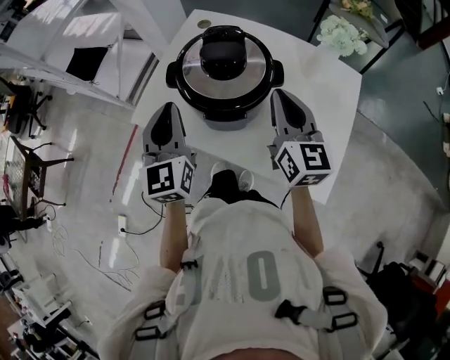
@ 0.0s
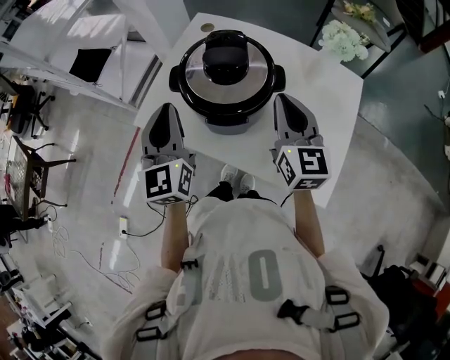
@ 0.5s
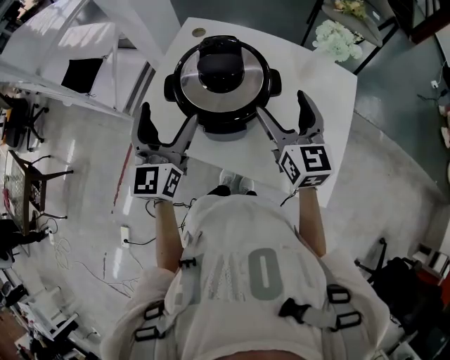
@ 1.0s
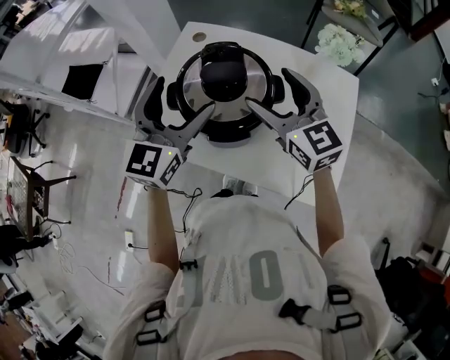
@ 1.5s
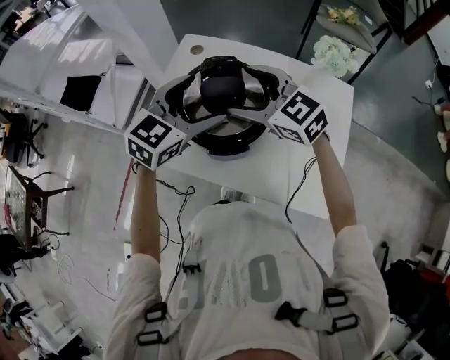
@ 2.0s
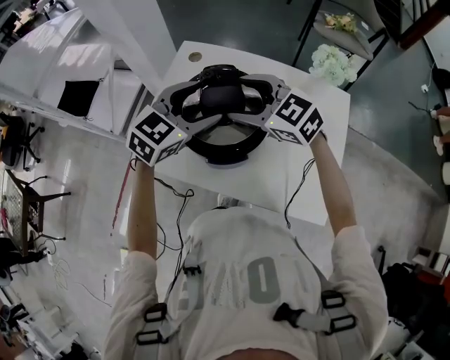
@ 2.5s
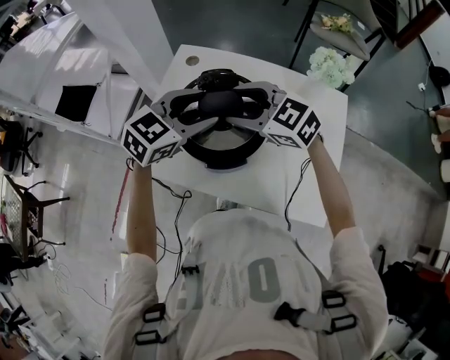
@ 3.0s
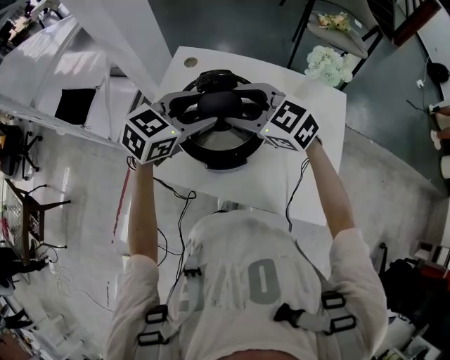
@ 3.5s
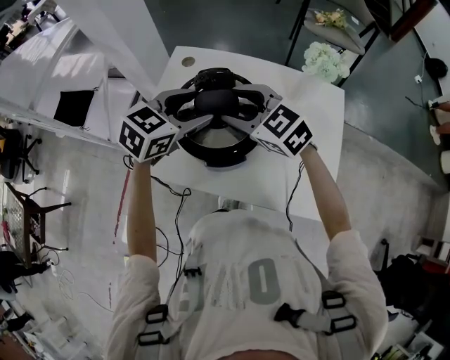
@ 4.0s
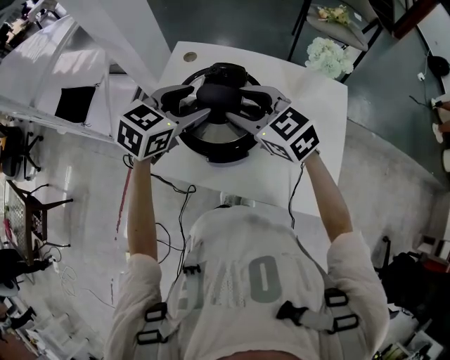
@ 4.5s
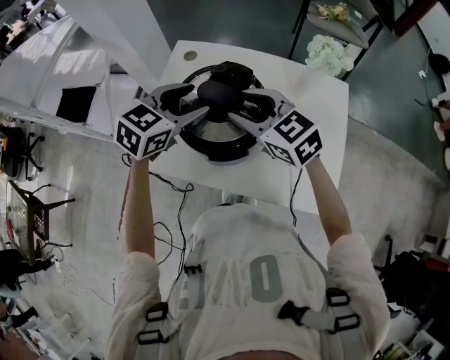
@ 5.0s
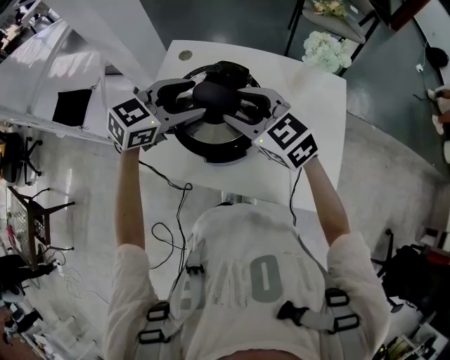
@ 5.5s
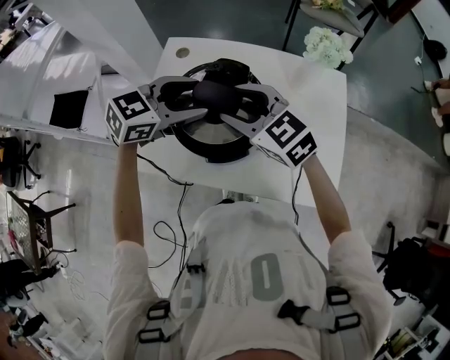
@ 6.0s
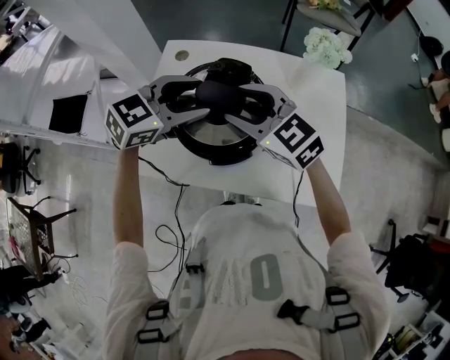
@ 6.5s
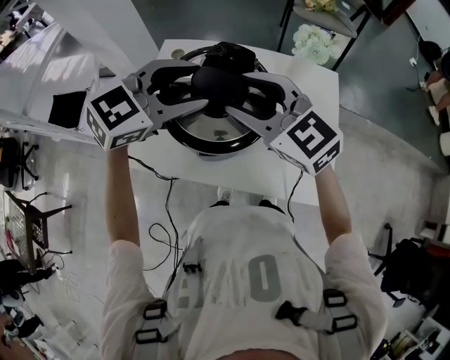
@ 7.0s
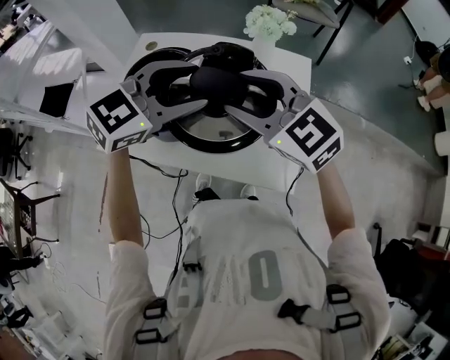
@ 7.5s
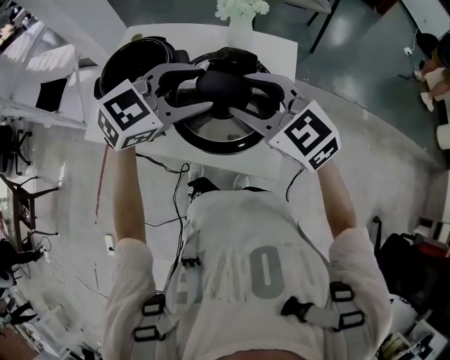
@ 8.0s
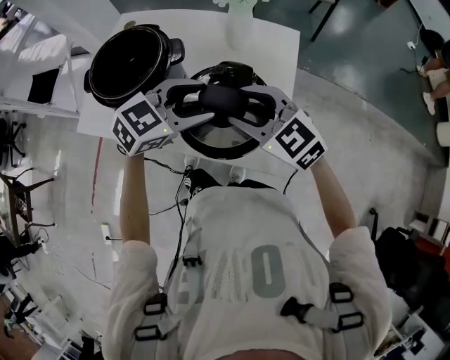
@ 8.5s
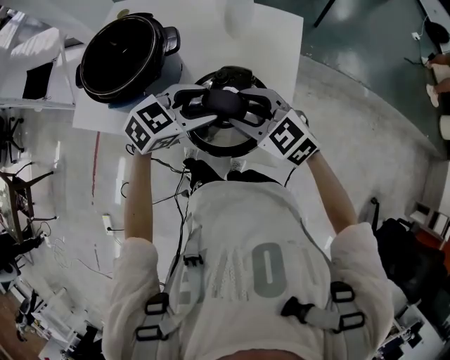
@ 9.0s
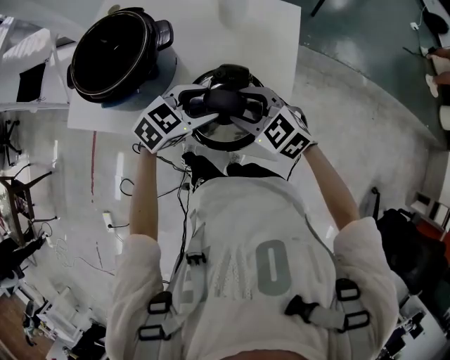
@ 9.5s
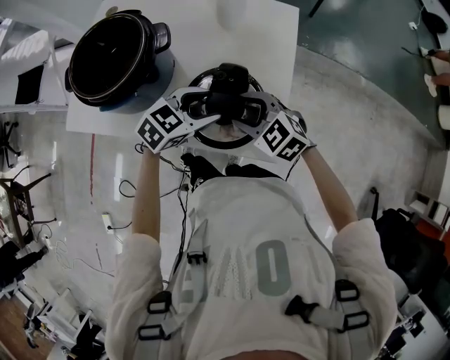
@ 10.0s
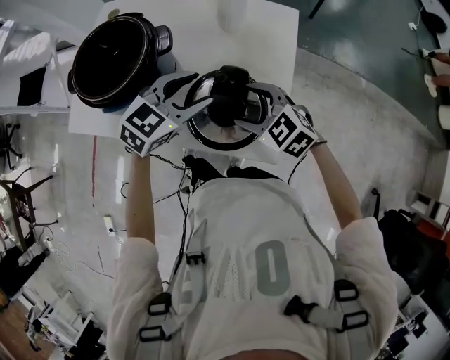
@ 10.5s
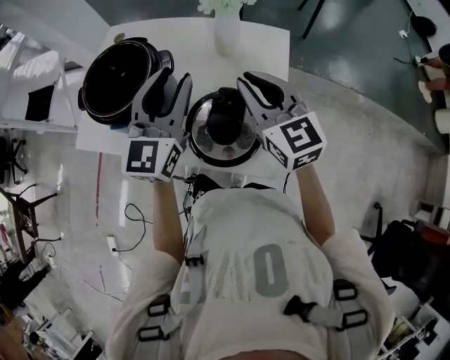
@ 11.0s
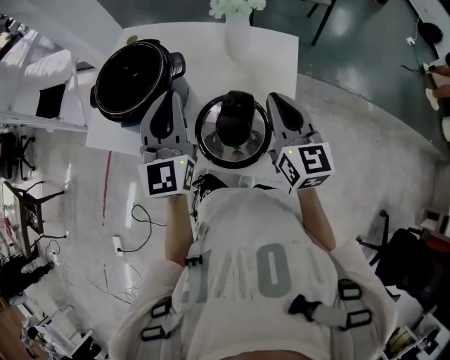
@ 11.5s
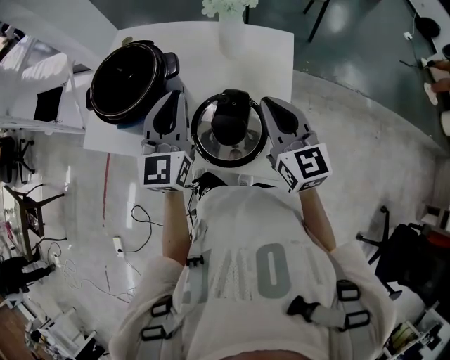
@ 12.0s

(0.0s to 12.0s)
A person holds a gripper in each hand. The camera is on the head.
0.0s - 2.0s: The left gripper moves to the right and forward, some 15 cm, swivels some 50 degrees, and opens up. The right gripper moves to the left and forward, approximately 10 cm, swivels some 40 degrees, and opens its fingers.
2.0s - 4.0s: The left gripper closes; the right gripper closes up.
4.0s - 6.0s: There are only small adjustments of the grippers.
6.0s - 8.0s: The two grippers go roughly 30 cm to the right.
8.0s - 10.0s: Both grippers move downward, some 20 cm. The right gripper changes its angle by approximately 20 degrees. Meanwhile the left gripper changes its angle by about 20 degrees.
10.0s - 12.0s: The left gripper is displaced upward and to the left by roughly 20 cm, angles its fingers upward, by roughly 40 degrees, and closes; the right gripper travels upward by about 15 cm, tips its fingers upward by approximately 40 degrees, and closes its fingers.

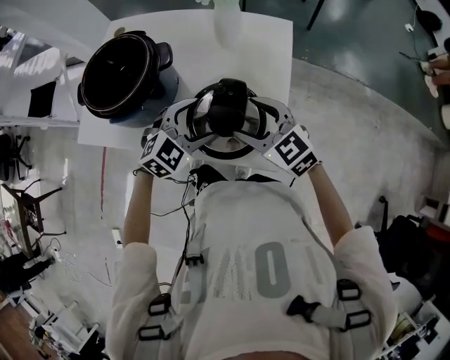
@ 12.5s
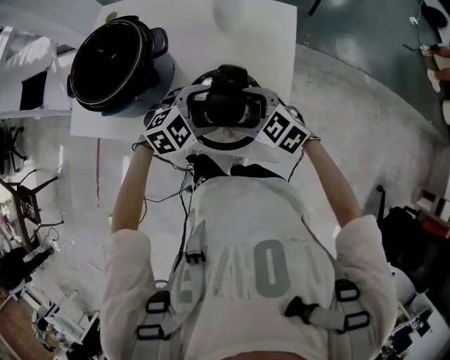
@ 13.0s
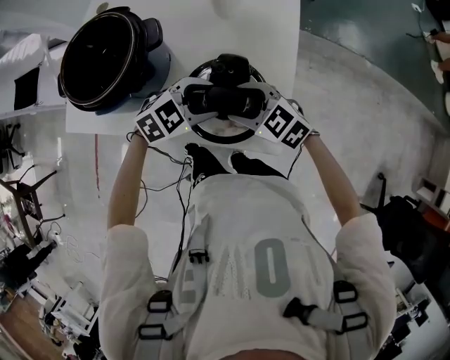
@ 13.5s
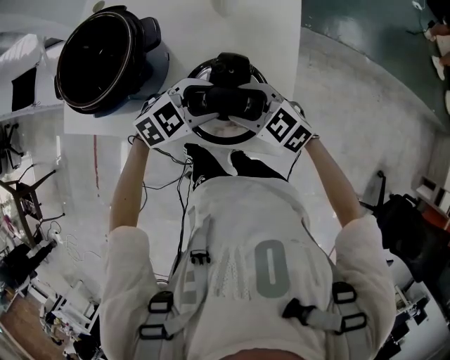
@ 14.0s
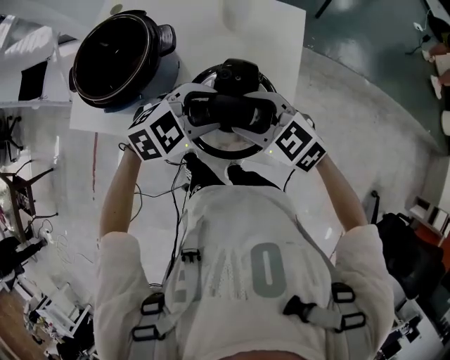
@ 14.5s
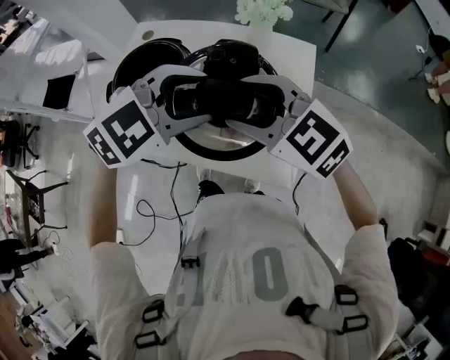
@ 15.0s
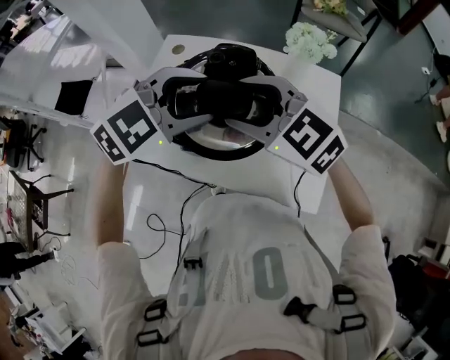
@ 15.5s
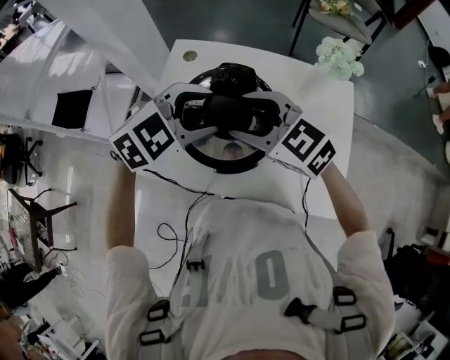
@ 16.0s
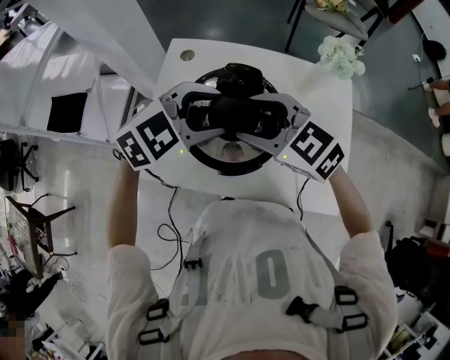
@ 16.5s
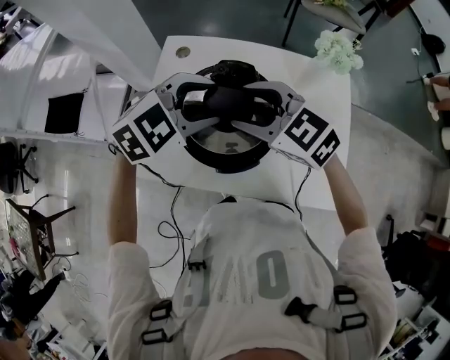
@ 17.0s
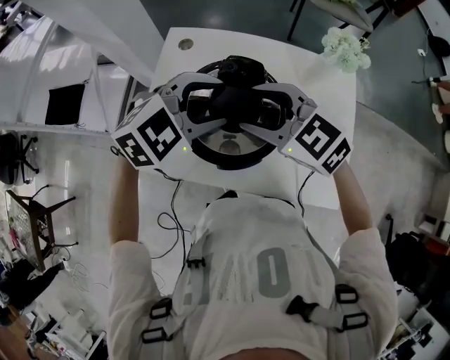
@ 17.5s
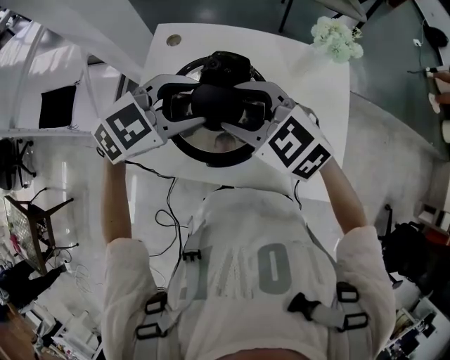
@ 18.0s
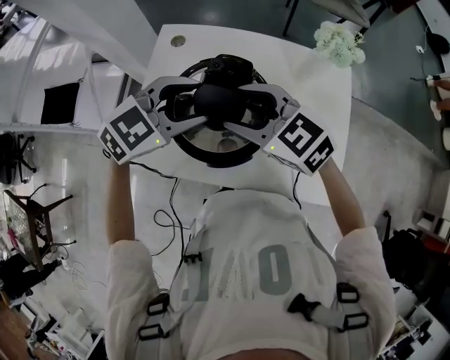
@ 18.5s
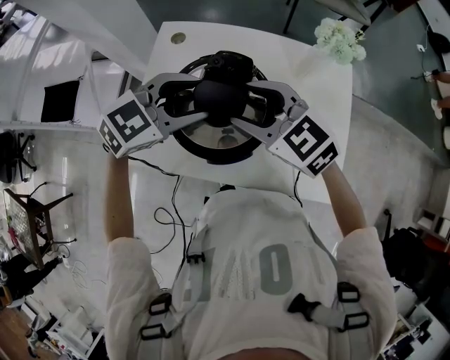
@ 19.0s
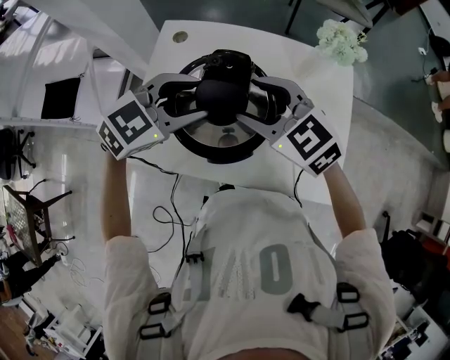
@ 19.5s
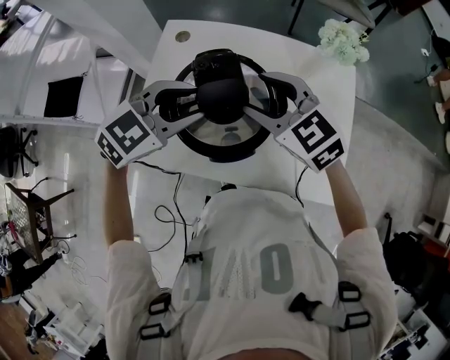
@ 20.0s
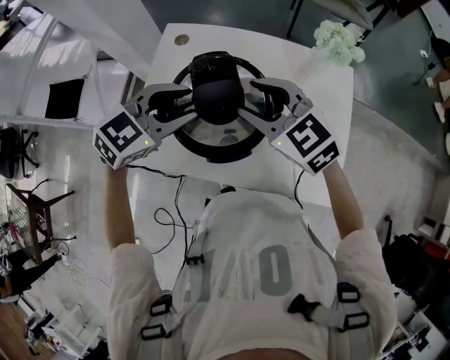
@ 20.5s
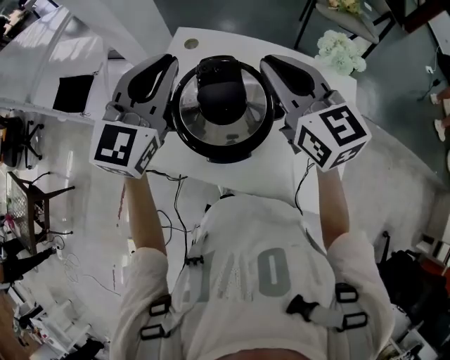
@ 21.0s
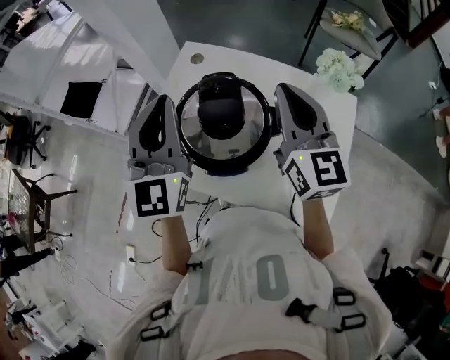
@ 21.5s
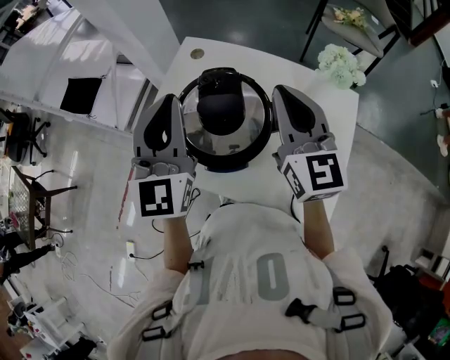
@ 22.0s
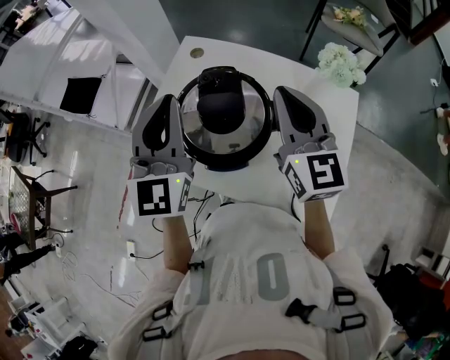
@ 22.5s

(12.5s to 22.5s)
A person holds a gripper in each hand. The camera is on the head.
12.5s - 14.5s: The right gripper goes downward and returns, about 10 cm each way.
14.5s - 16.5s: The right gripper ends up some 35 cm from where it was. Meanwhile the left gripper shifts by roughly 35 cm.
16.5s - 20.5s: There are only small adjustments of the grippers.
20.5s - 22.5s: The right gripper is displaced upward and to the right by about 10 cm, rotates about 40 degrees, and closes; the left gripper travels upward by about 10 cm, and angles its fingers upward, by some 40 degrees.

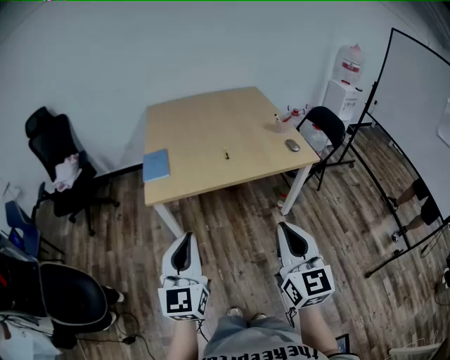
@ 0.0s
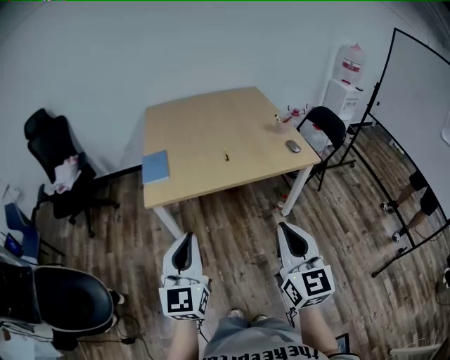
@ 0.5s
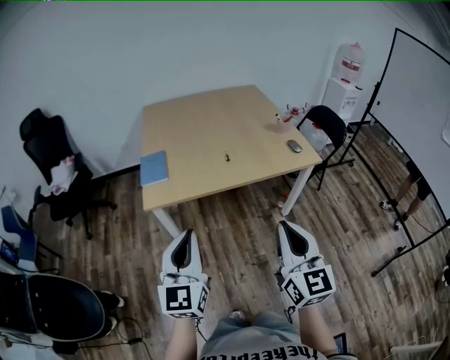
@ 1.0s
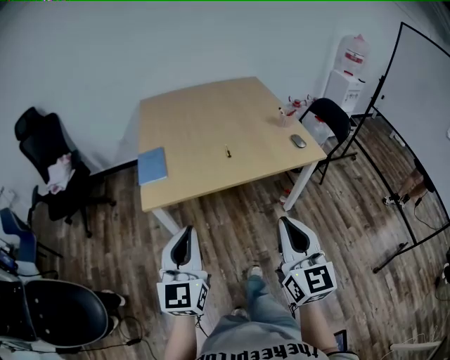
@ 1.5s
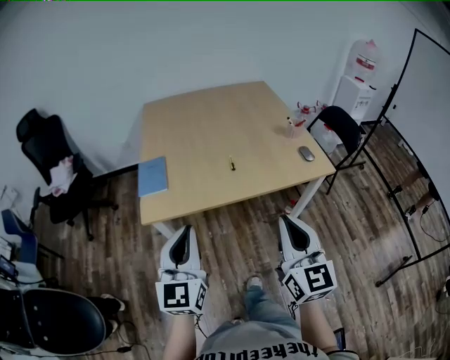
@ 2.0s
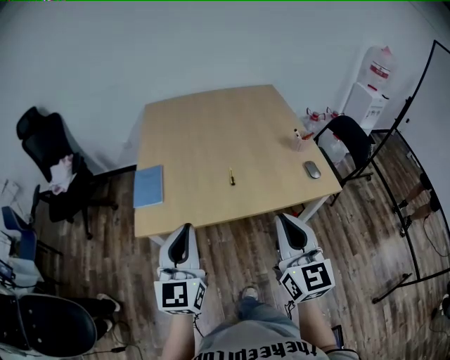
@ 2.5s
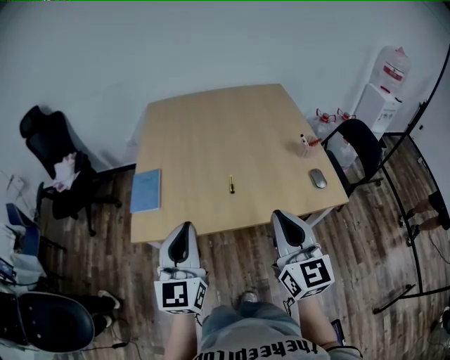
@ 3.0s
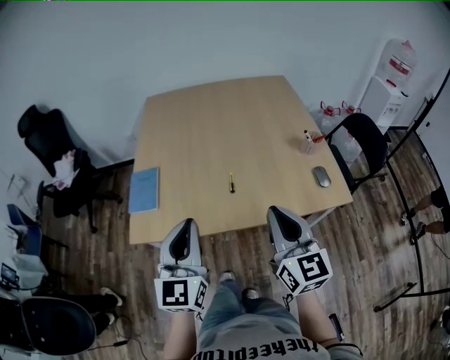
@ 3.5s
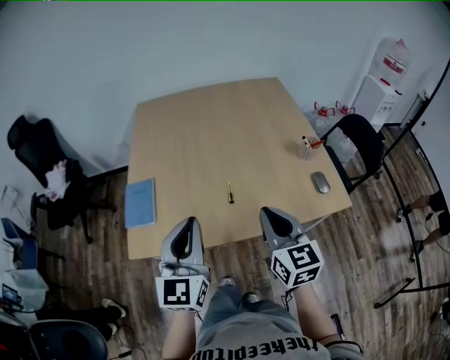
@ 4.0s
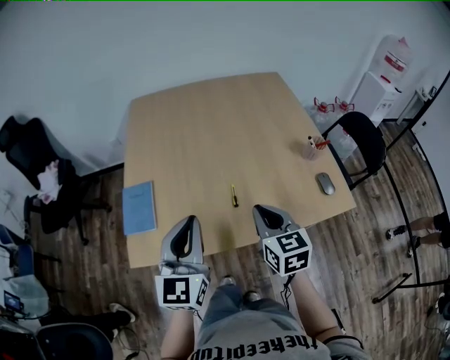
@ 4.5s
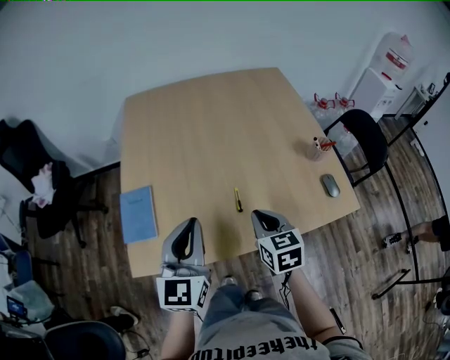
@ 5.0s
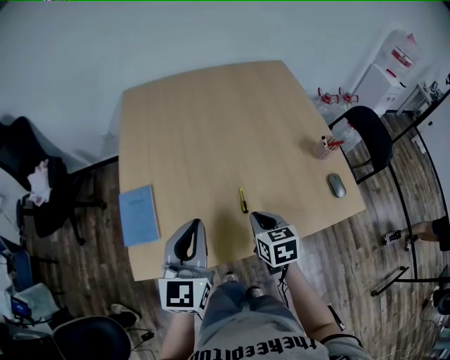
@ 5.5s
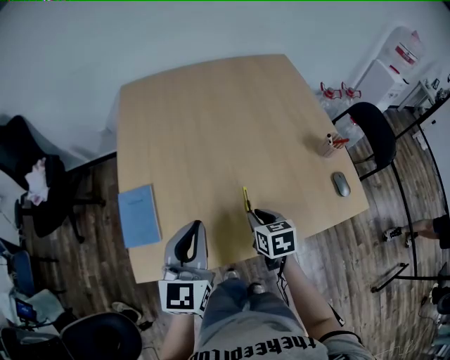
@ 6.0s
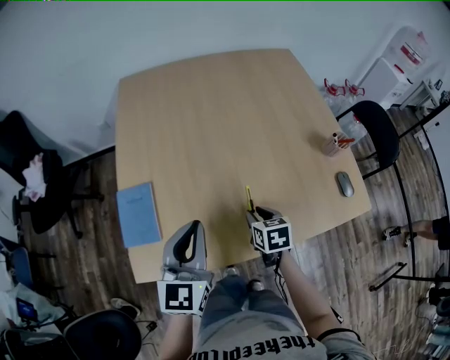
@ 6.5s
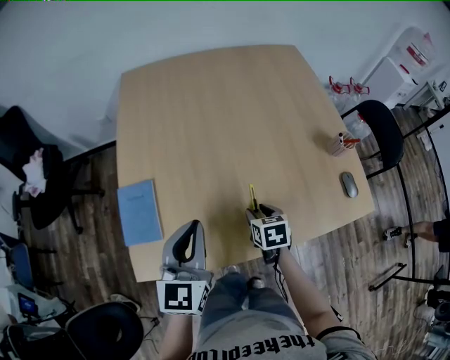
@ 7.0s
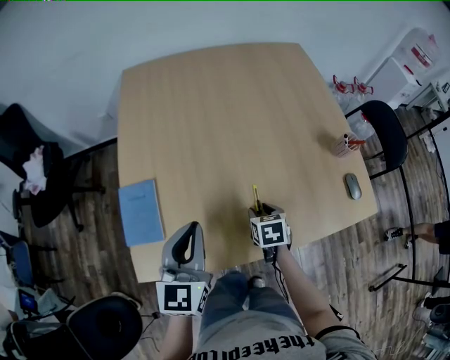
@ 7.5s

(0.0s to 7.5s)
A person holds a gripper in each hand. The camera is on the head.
0.0s - 2.0s: Both grippers travel together forward, approximately 15 cm.
2.0s - 4.0s: The right gripper is displaced forward by some 25 cm. The left gripper shifts roughly 20 cm forward and to the right.
4.0s - 5.5s: The left gripper shifts roughly 10 cm forward and downward. The right gripper goes approximately 20 cm downward and forward, and changes its angle by roughly 30 degrees.
5.5s - 7.5s: The right gripper shifts approximately 10 cm downward, and opens its fingers; the left gripper changes place by approximately 5 cm.
